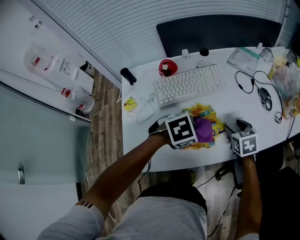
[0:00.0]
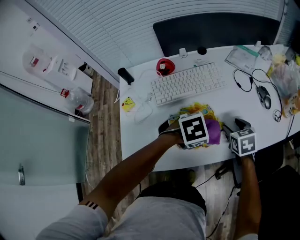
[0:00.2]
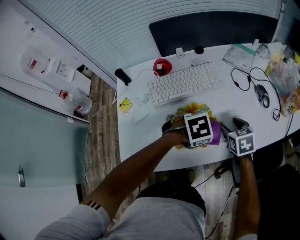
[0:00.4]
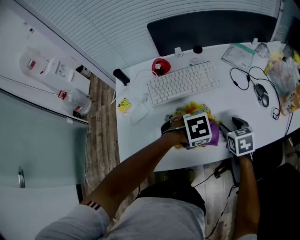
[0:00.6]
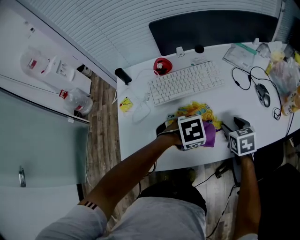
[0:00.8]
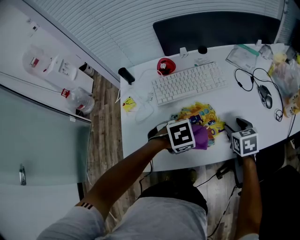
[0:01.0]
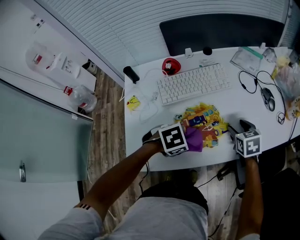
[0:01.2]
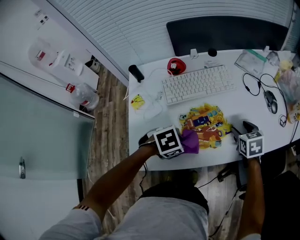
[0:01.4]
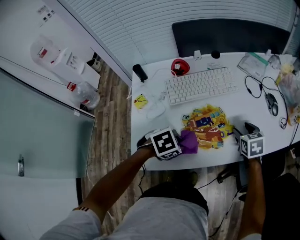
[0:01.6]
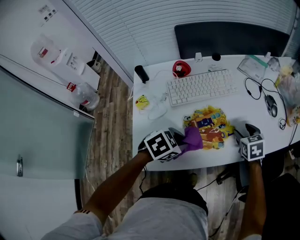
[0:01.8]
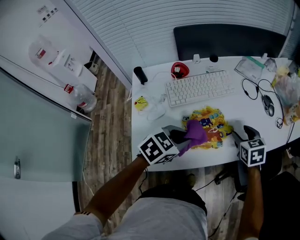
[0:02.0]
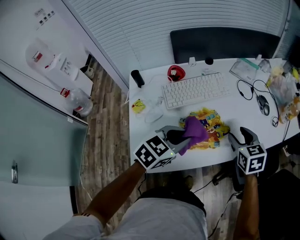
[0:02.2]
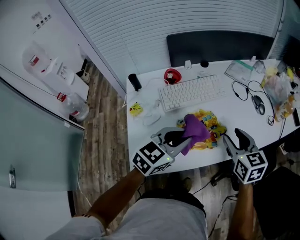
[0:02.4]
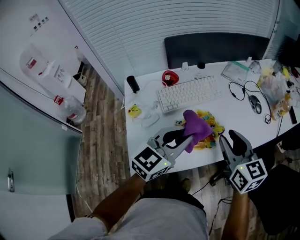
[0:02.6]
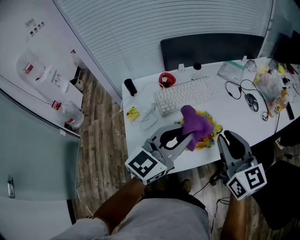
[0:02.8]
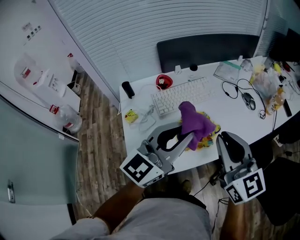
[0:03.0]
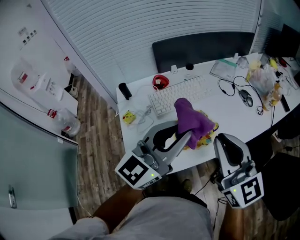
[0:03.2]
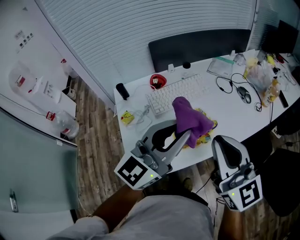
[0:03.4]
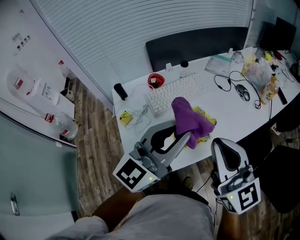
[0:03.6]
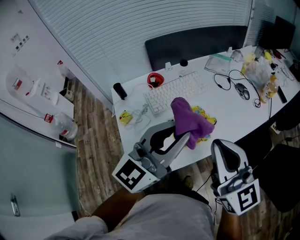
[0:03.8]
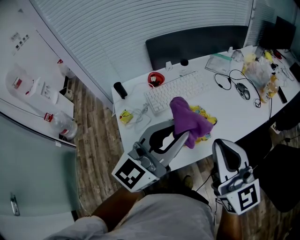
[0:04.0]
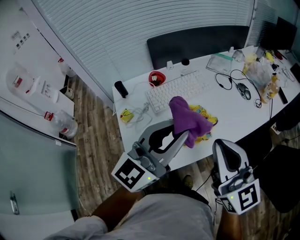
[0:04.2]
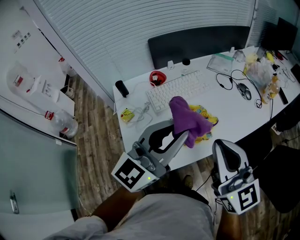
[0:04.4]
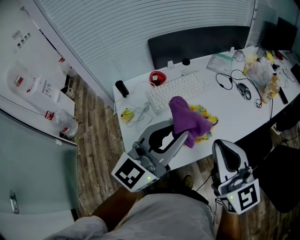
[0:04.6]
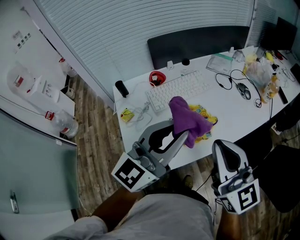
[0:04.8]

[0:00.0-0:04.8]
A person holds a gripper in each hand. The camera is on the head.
0:00.0 to 0:01.6: The left gripper changes place by approximately 10 cm.
0:01.6 to 0:03.2: The left gripper travels upward by about 30 cm, and tilts its fingers about 80 degrees upward. The right gripper heads upward and backward, covering some 35 cm, tips its fingers upward by roughly 50 degrees, and closes up.
0:03.2 to 0:04.8: The grippers move only a little.

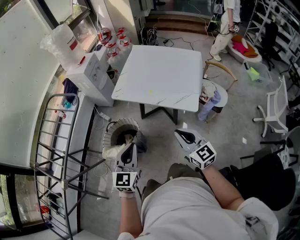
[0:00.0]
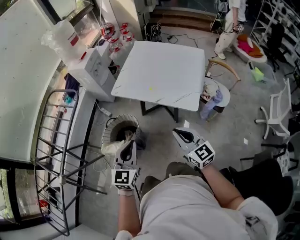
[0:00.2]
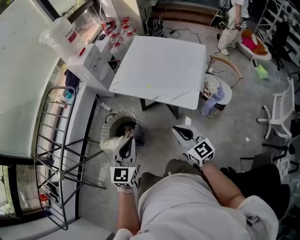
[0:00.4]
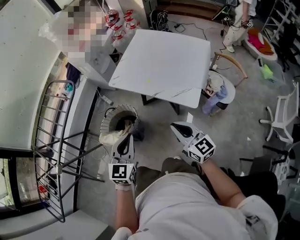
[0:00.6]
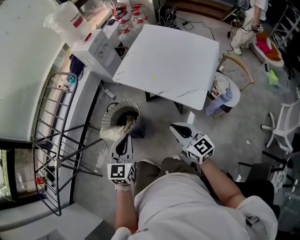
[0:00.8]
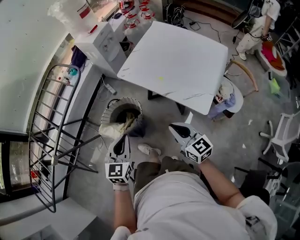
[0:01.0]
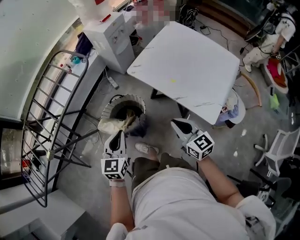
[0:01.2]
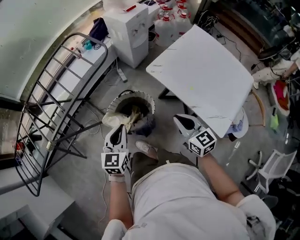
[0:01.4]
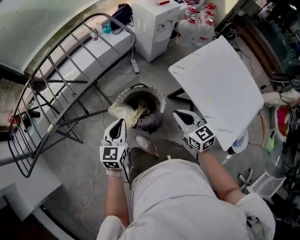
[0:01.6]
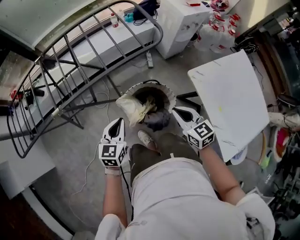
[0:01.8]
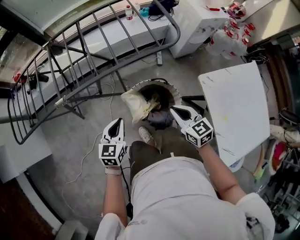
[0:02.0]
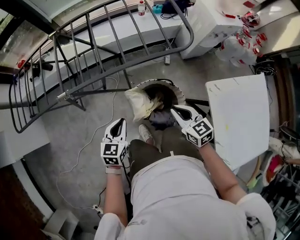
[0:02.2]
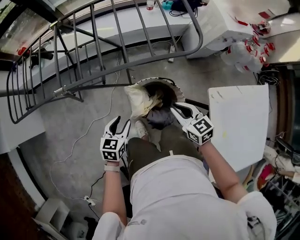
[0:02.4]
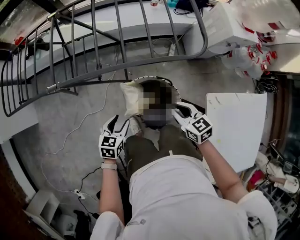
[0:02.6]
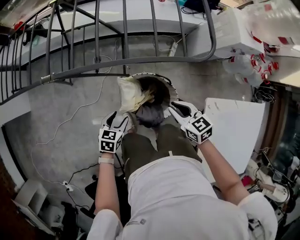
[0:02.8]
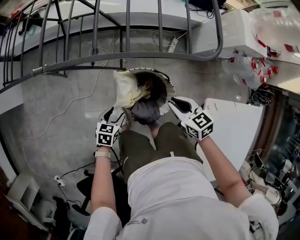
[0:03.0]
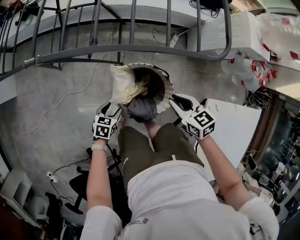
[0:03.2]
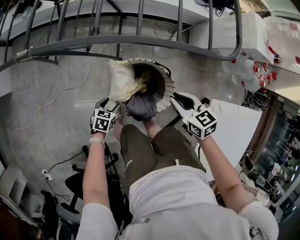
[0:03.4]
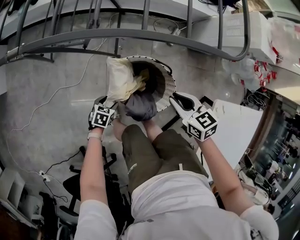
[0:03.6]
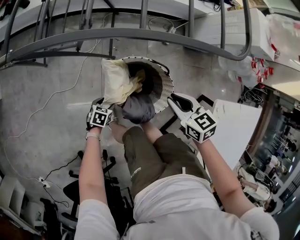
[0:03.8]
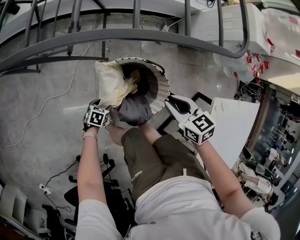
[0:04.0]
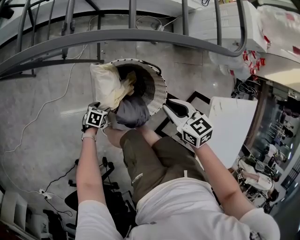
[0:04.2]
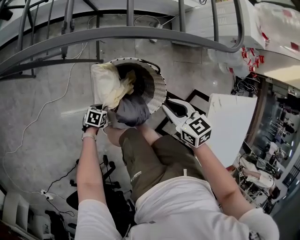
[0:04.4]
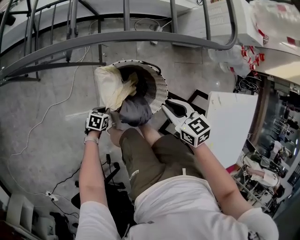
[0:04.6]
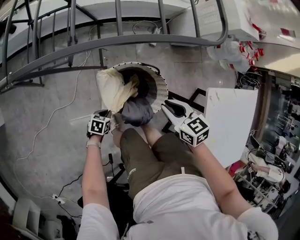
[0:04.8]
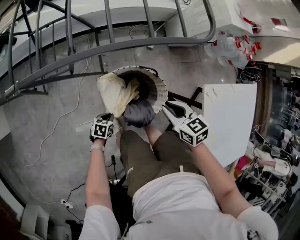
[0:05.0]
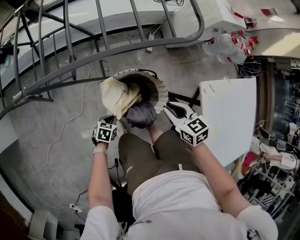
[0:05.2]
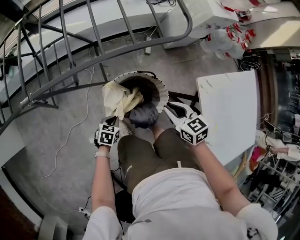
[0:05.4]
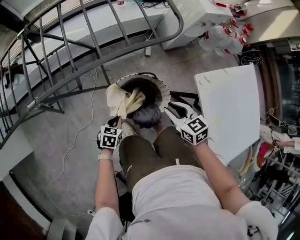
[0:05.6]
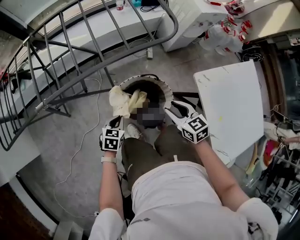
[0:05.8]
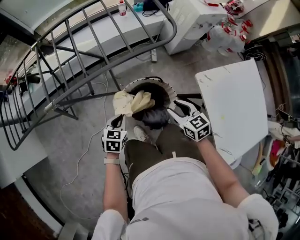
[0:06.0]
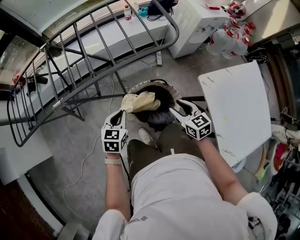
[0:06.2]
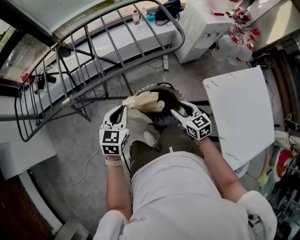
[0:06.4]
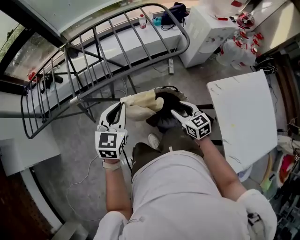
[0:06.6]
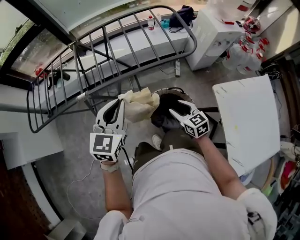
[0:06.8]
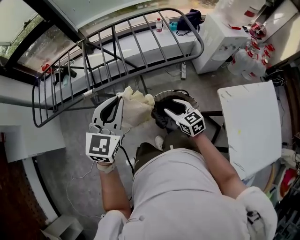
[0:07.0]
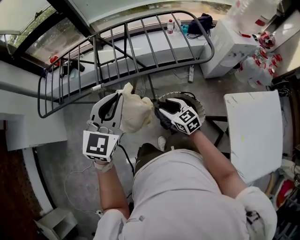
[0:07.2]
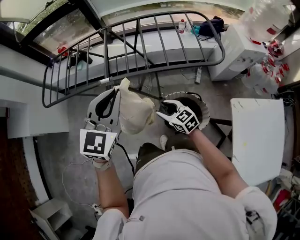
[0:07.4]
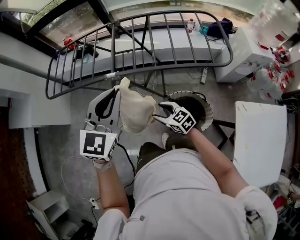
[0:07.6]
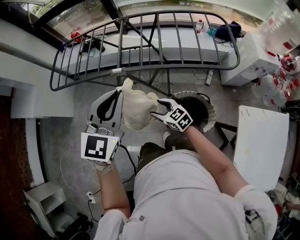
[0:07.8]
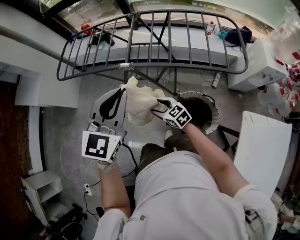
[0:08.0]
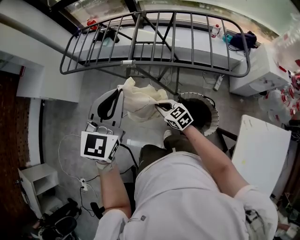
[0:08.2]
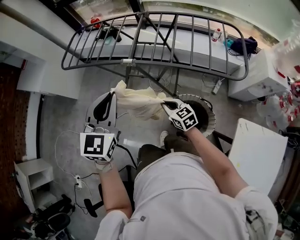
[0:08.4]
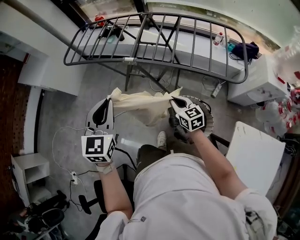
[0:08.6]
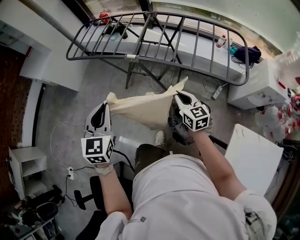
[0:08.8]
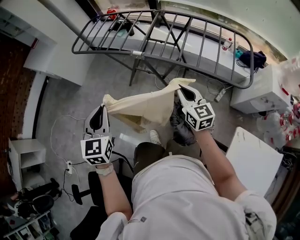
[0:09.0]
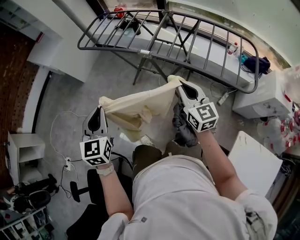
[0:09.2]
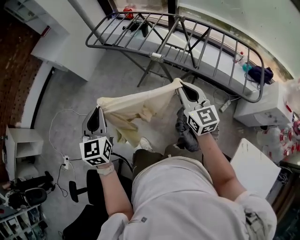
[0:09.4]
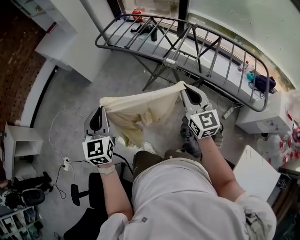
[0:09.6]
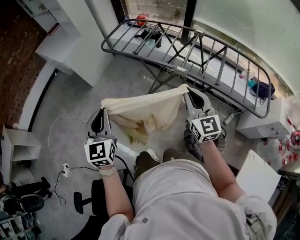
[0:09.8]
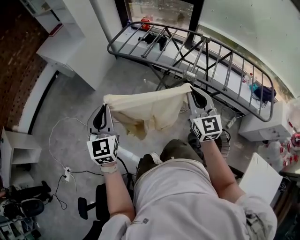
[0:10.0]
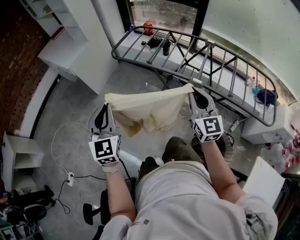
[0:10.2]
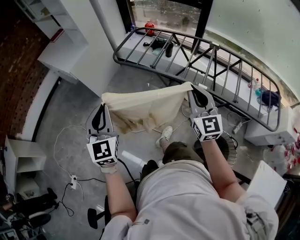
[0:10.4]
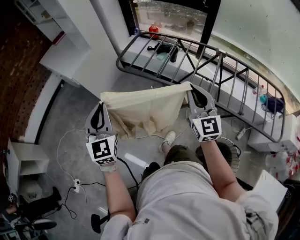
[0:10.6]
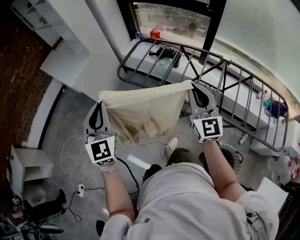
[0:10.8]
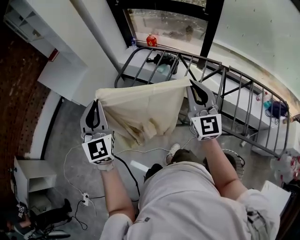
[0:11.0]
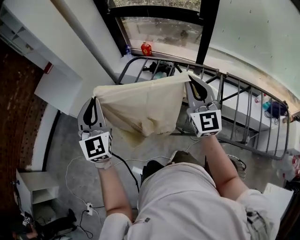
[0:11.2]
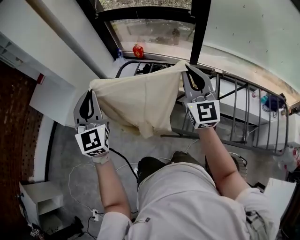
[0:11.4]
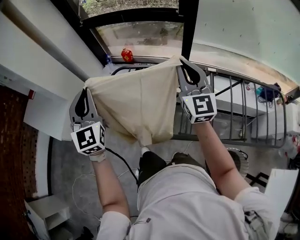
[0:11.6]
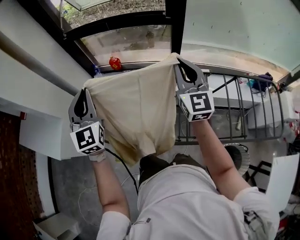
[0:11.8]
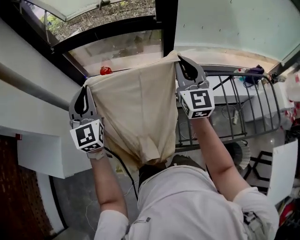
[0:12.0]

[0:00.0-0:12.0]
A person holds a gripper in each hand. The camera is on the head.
0:00.0 to 0:01.6: The left gripper moves roughly 30 cm, and changes its angle by roughly 40 degrees. The right gripper moves about 35 cm, and swivels roughly 40 degrees.
0:01.6 to 0:03.0: The right gripper shifts by about 25 cm, and turns by some 50 degrees. Meanwhile the left gripper is displaced downward by some 25 cm, changes its angle by some 40 degrees, and opens up.
0:03.0 to 0:04.4: The left gripper is displaced downward by about 30 cm, changes its angle by about 20 degrees, and closes up. Meanwhile the right gripper heads downward, covering some 10 cm.
0:04.4 to 0:06.0: The right gripper heads upward, covering approximately 15 cm, and rotates approximately 30 degrees. The left gripper heads upward, covering roughly 35 cm, and rotates about 30 degrees.
0:06.0 to 0:07.6: The left gripper moves upward, roughly 40 cm, and tips its fingers upward by some 40 degrees, while the right gripper ends up about 30 cm from where it was, and changes its angle by roughly 40 degrees.
0:07.6 to 0:09.0: The left gripper shifts roughly 20 cm to the left and backward, and swivels approximately 40 degrees, while the right gripper shifts about 15 cm upward and to the right, and closes.
0:09.0 to 0:10.4: The left gripper travels to the left and forward by approximately 35 cm, while the right gripper shifts approximately 40 cm to the left, forward and upward, and turns by roughly 20 degrees.
0:10.4 to 0:12.0: The pair of grippers is taken roughly 60 cm. The left gripper turns by some 30 degrees. Meanwhile the right gripper changes its angle by approximately 30 degrees.

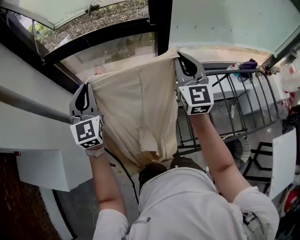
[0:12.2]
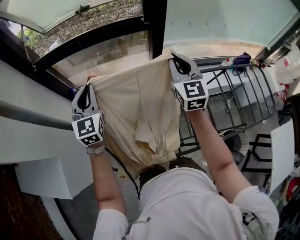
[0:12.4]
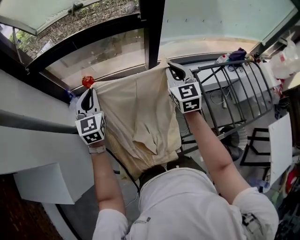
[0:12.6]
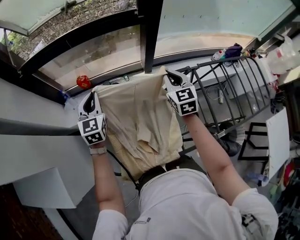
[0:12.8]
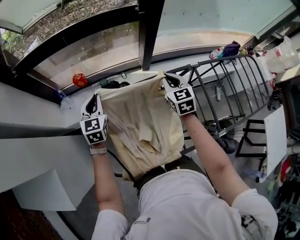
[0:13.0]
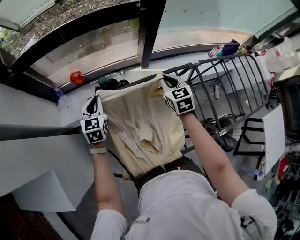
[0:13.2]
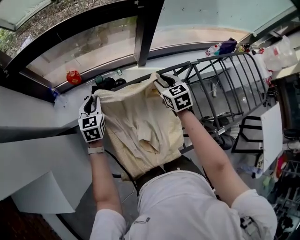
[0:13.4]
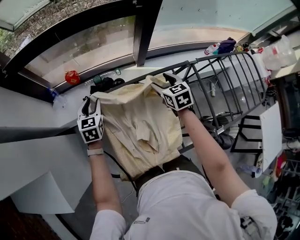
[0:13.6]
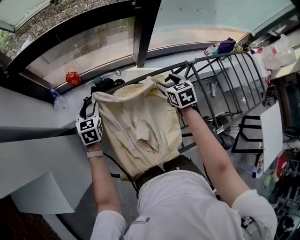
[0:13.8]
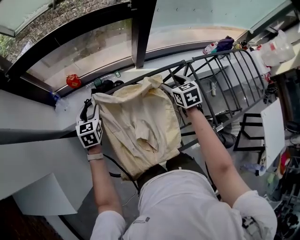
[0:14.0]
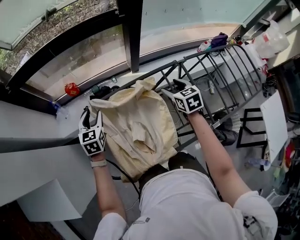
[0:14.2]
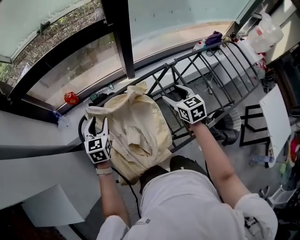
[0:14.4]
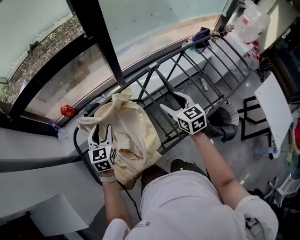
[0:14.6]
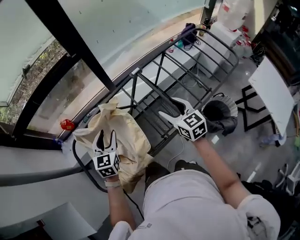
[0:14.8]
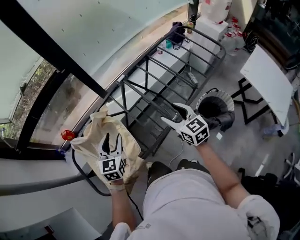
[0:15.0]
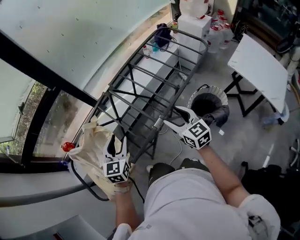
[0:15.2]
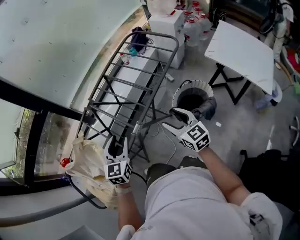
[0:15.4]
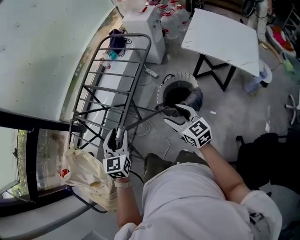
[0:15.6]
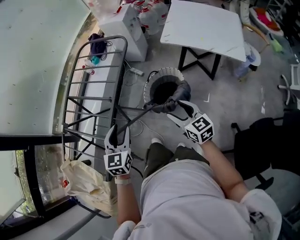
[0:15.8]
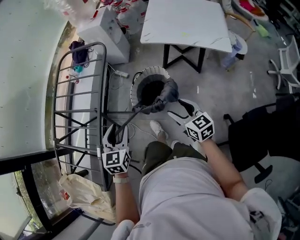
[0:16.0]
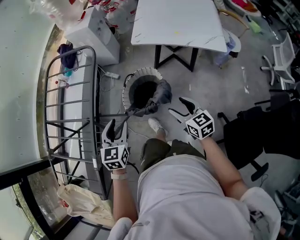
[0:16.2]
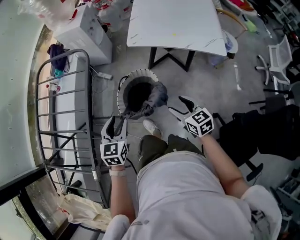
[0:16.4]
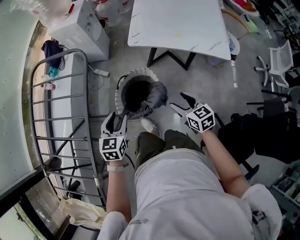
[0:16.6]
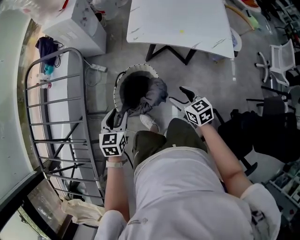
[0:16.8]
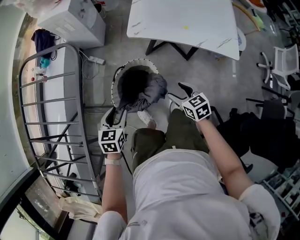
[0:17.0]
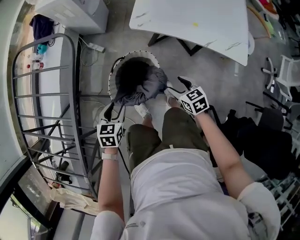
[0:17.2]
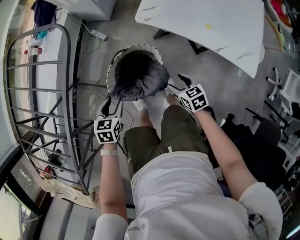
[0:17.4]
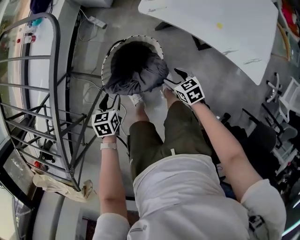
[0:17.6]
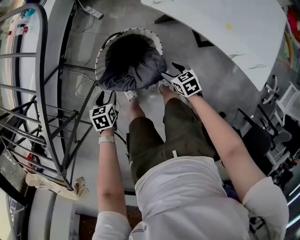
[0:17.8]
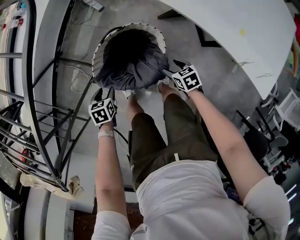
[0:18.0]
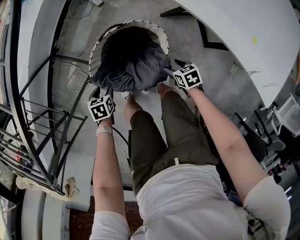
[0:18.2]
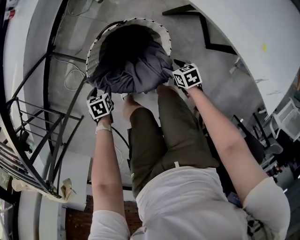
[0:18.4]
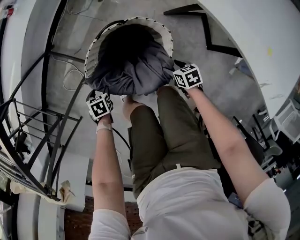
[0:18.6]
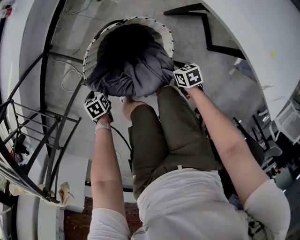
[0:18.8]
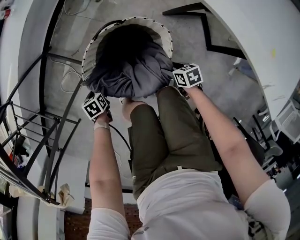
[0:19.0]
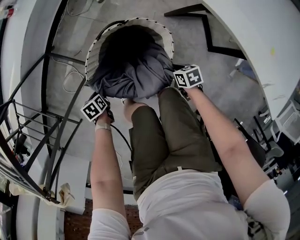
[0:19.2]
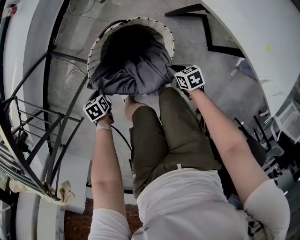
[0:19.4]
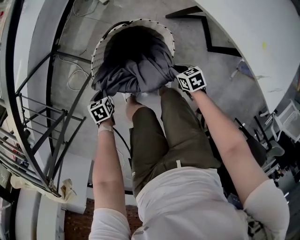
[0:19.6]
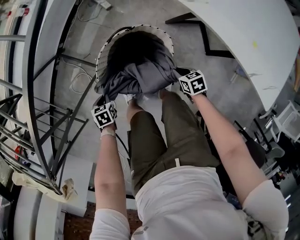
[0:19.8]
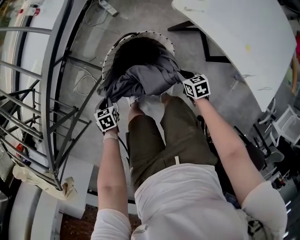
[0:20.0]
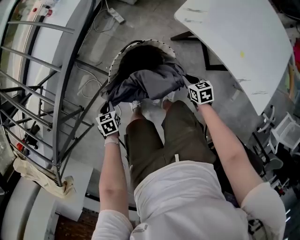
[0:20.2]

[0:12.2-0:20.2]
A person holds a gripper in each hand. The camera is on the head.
0:12.2 to 0:13.8: The grippers both shift downward by approximately 30 cm. The left gripper tips its fingers downward by about 40 degrees, and opens. Meanwhile the right gripper angles its fingers downward, by about 50 degrees, and opens.
0:13.8 to 0:15.4: Both grippers are carried some 60 cm. The left gripper rotates some 50 degrees. The right gripper rotates roughly 40 degrees.
0:15.4 to 0:17.0: Both grippers are carried approximately 50 cm. The left gripper changes its angle by about 50 degrees. The right gripper points its fingers roughly 30 degrees further downward.
0:17.0 to 0:18.6: Both grippers travel together downward, approximately 40 cm. The left gripper points its fingers approximately 40 degrees further downward, while the right gripper swivels about 40 degrees.
0:18.6 to 0:20.2: The grippers both shift upward by roughly 15 cm. The right gripper closes. The left gripper closes.
